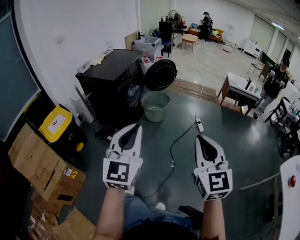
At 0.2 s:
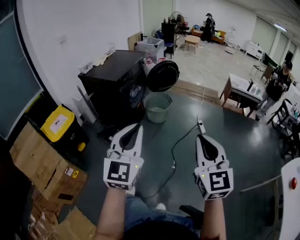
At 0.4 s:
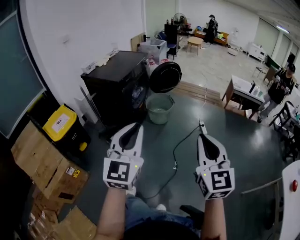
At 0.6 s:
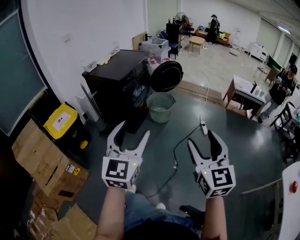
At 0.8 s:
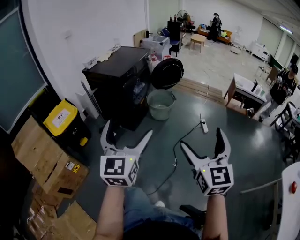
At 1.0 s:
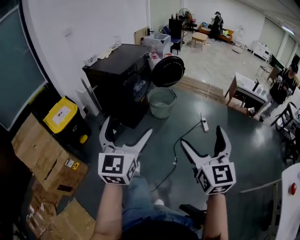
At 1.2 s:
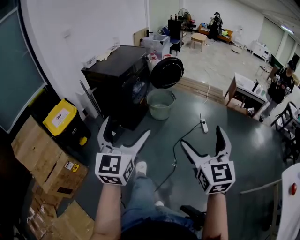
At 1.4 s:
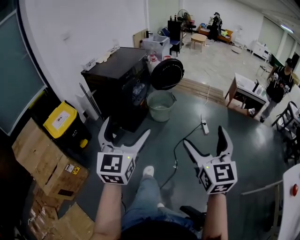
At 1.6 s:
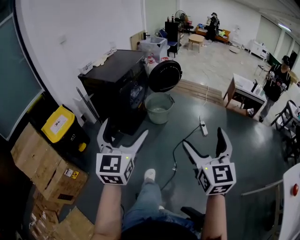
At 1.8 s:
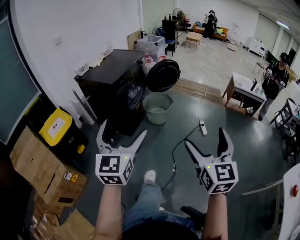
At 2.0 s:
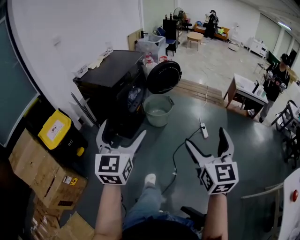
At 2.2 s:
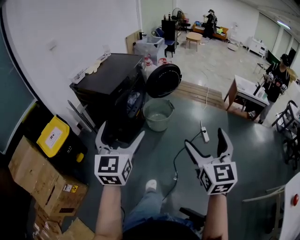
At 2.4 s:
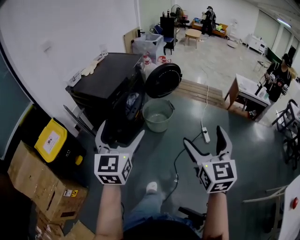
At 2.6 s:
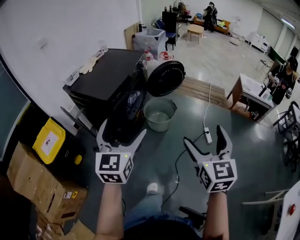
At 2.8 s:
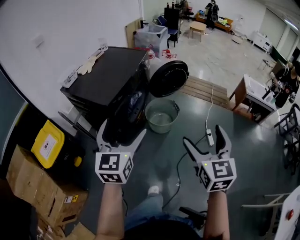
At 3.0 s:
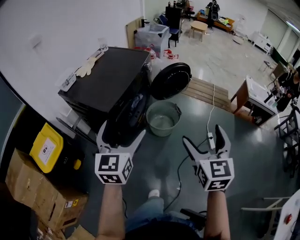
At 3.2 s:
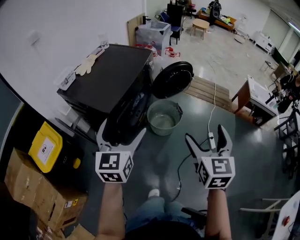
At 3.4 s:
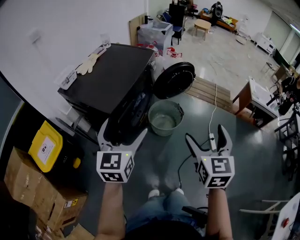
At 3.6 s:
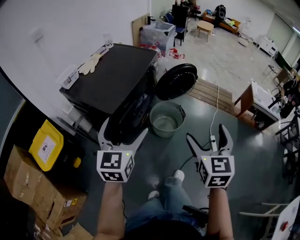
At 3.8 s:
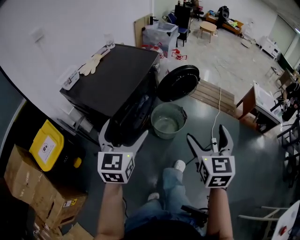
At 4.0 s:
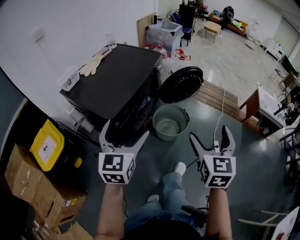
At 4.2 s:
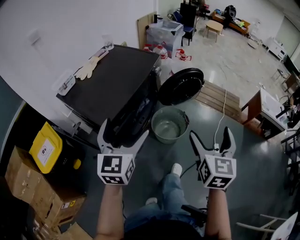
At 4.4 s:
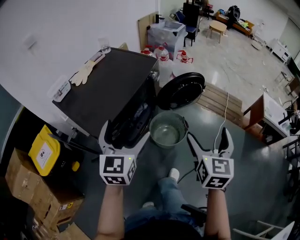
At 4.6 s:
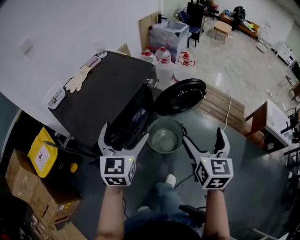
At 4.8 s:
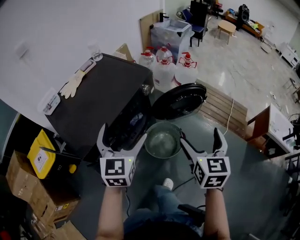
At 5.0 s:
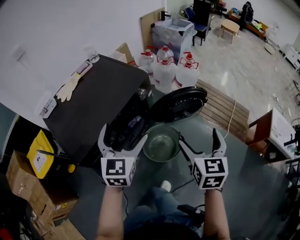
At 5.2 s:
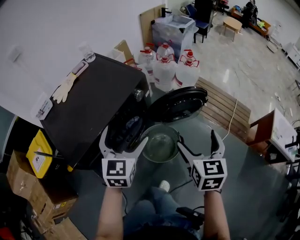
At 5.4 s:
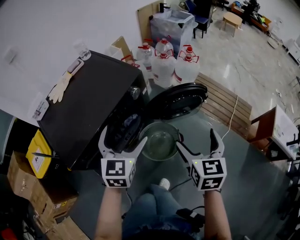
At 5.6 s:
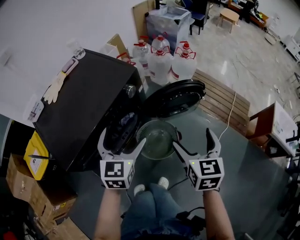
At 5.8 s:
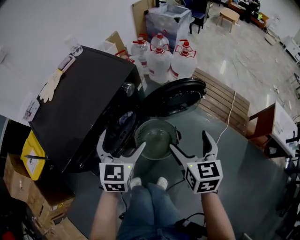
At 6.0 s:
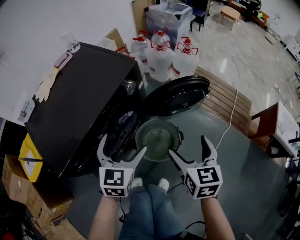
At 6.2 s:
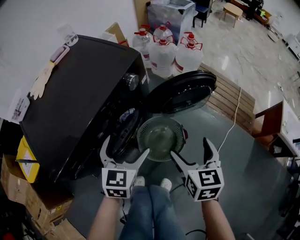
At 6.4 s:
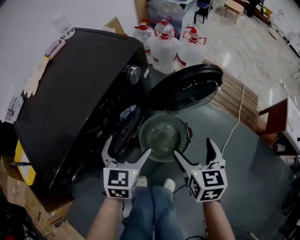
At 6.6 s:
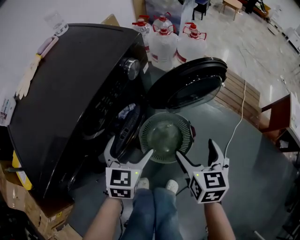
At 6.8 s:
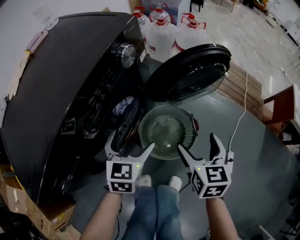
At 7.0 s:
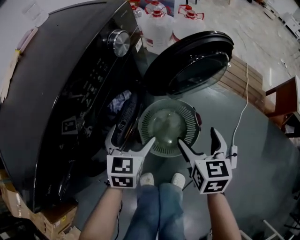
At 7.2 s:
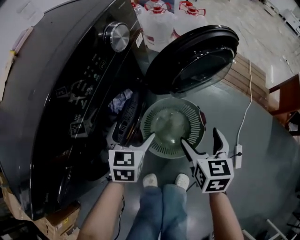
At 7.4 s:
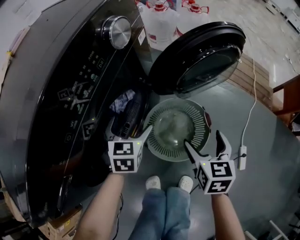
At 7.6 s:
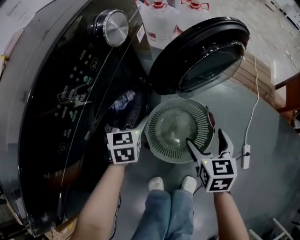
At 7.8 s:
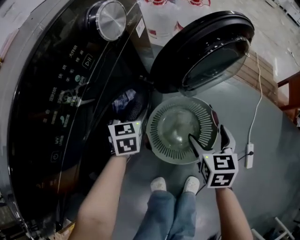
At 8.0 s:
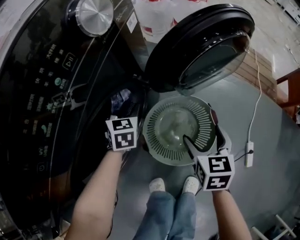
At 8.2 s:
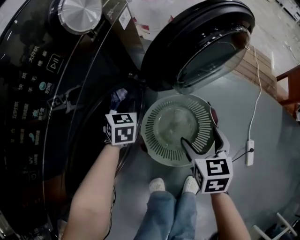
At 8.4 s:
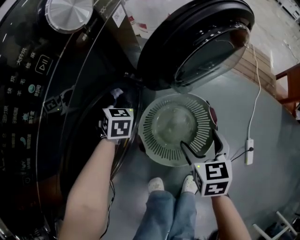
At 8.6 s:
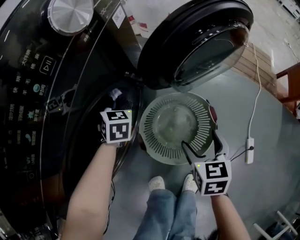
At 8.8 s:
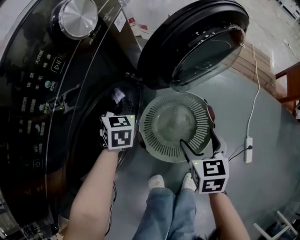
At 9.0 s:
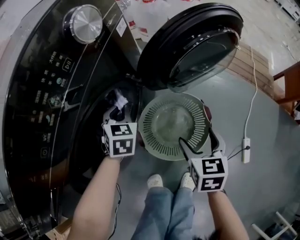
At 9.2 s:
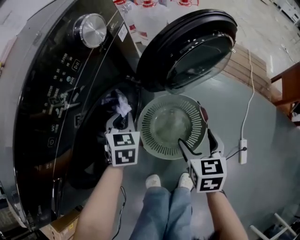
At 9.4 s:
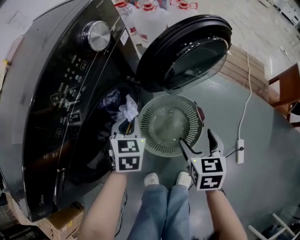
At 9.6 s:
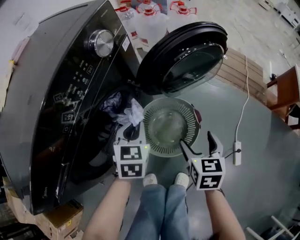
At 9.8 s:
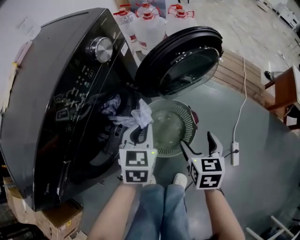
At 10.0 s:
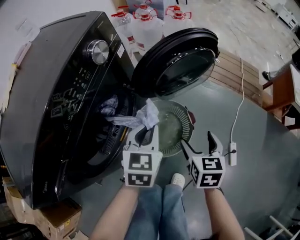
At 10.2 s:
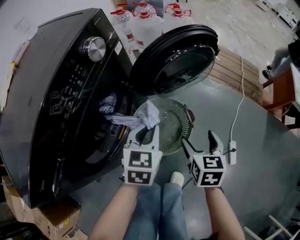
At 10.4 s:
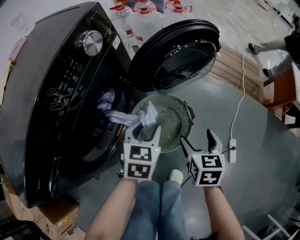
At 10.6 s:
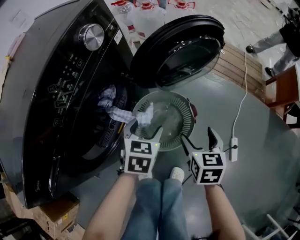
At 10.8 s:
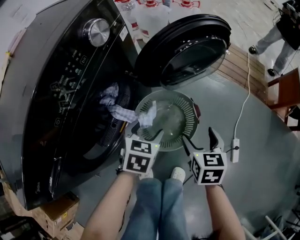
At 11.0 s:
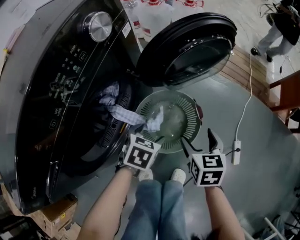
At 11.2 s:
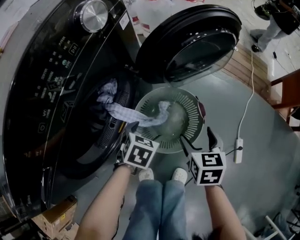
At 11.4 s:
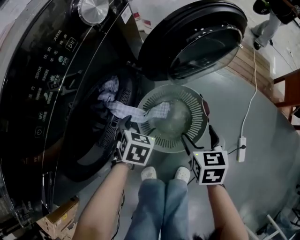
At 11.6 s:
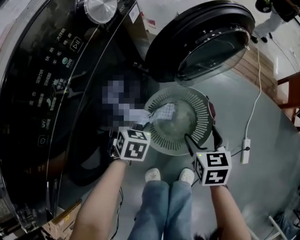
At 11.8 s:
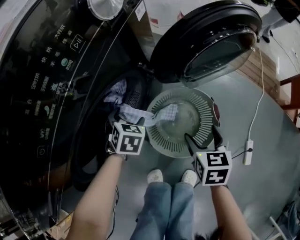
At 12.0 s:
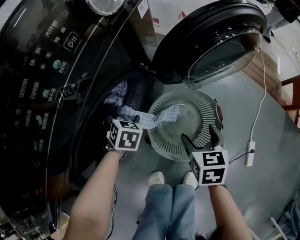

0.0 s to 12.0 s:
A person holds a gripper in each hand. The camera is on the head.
0.0 to 1.6 s: The two grippers go approximately 5 cm forward. The left gripper opens up. The right gripper opens up.
1.6 to 3.0 s: The two grippers travel together, forward, some 40 cm.
3.0 to 4.4 s: The two grippers go about 20 cm forward.
4.4 to 6.0 s: The left gripper is displaced forward, downward and to the right by some 30 cm. The right gripper travels forward and downward by roughly 25 cm, and turns by about 20 degrees.
6.0 to 7.6 s: The left gripper travels downward and forward by about 35 cm, while the right gripper travels downward by some 30 cm.
7.6 to 9.0 s: The left gripper reaches some 10 cm forward, then returns, and closes its fingers.
9.0 to 10.4 s: The right gripper heads to the right and upward, covering some 10 cm, while the left gripper travels to the right, backward and upward by some 20 cm, and rotates about 20 degrees.
10.4 to 12.0 s: The left gripper changes place by about 30 cm, turns by roughly 30 degrees, and opens up. The right gripper ends up about 15 cm from where it was.

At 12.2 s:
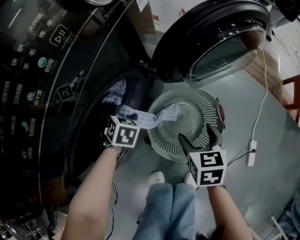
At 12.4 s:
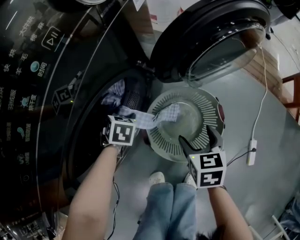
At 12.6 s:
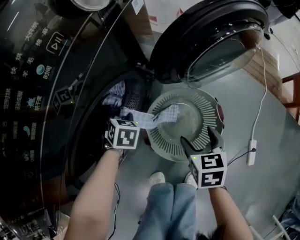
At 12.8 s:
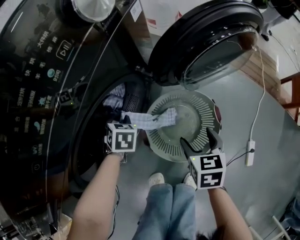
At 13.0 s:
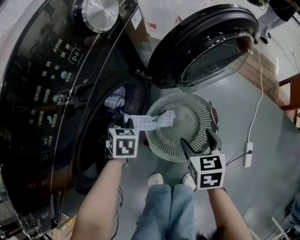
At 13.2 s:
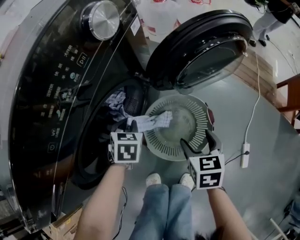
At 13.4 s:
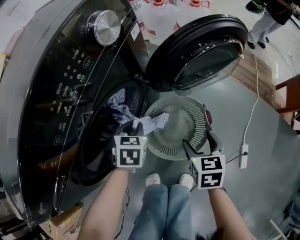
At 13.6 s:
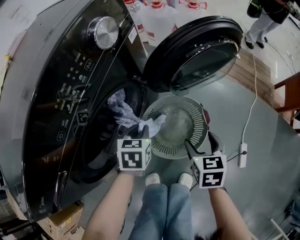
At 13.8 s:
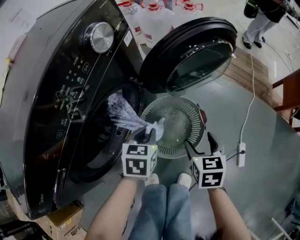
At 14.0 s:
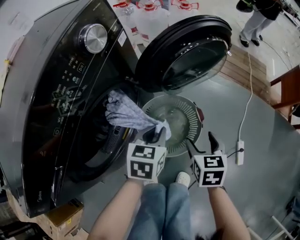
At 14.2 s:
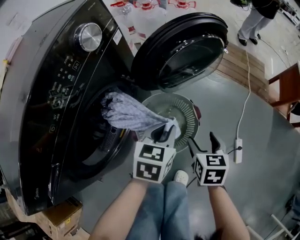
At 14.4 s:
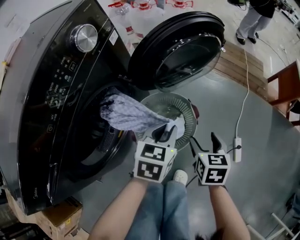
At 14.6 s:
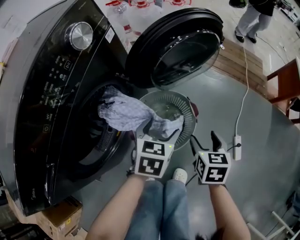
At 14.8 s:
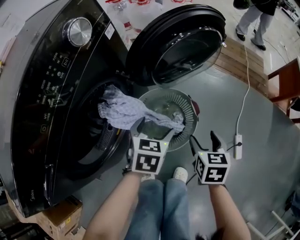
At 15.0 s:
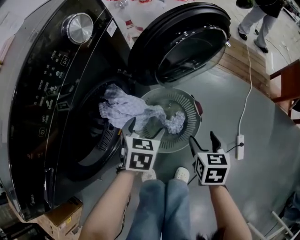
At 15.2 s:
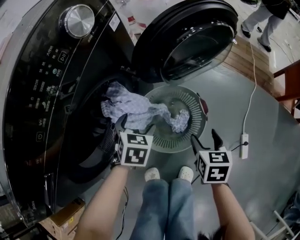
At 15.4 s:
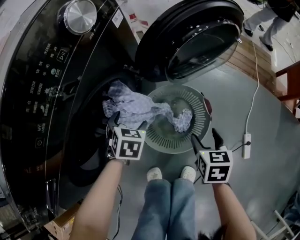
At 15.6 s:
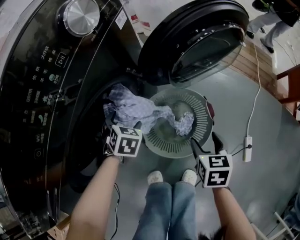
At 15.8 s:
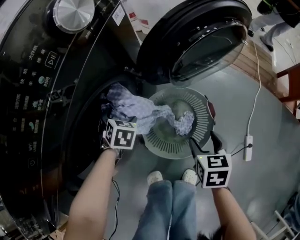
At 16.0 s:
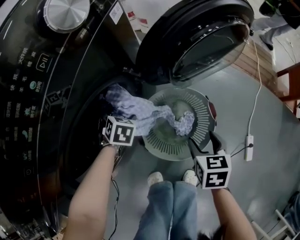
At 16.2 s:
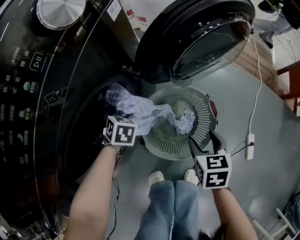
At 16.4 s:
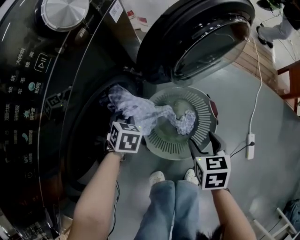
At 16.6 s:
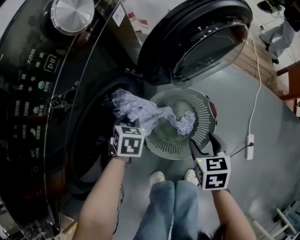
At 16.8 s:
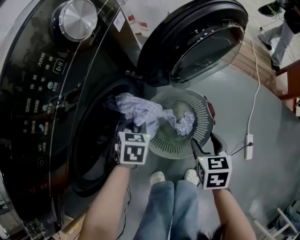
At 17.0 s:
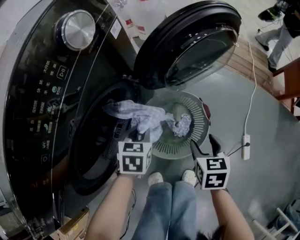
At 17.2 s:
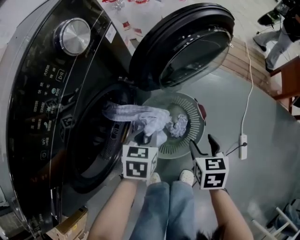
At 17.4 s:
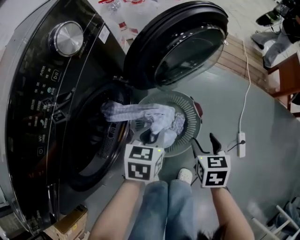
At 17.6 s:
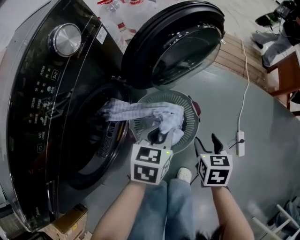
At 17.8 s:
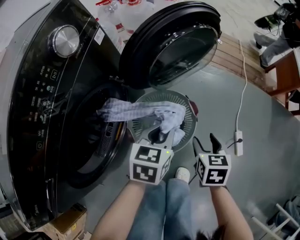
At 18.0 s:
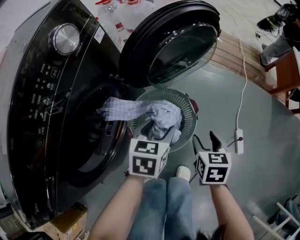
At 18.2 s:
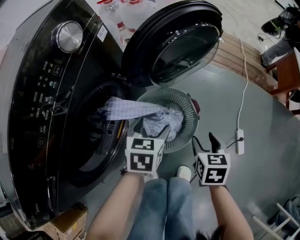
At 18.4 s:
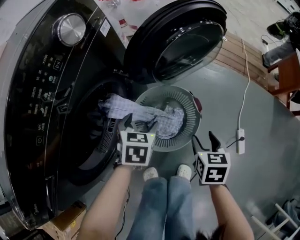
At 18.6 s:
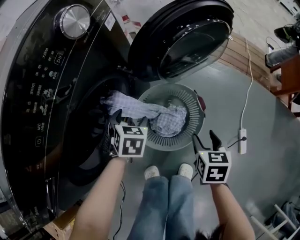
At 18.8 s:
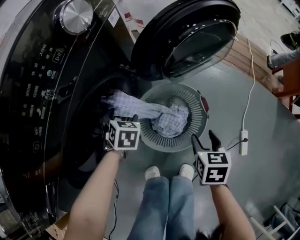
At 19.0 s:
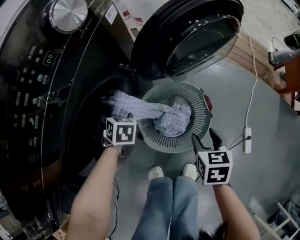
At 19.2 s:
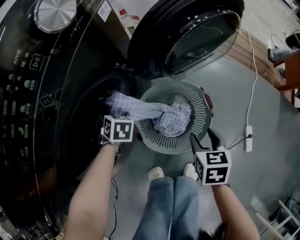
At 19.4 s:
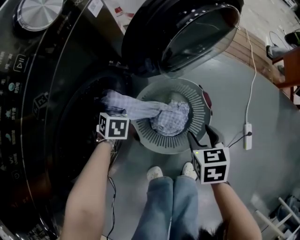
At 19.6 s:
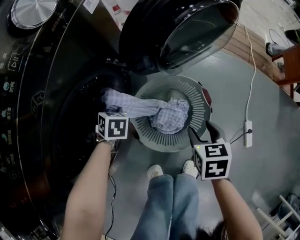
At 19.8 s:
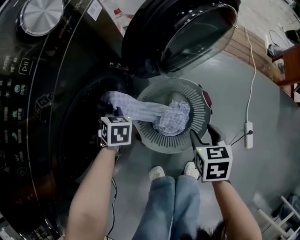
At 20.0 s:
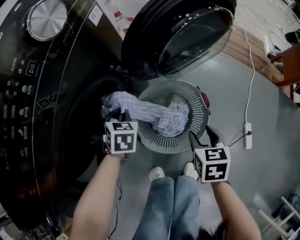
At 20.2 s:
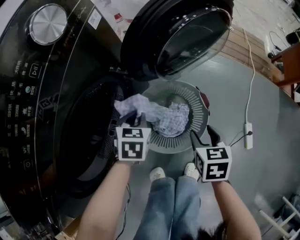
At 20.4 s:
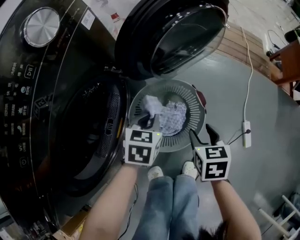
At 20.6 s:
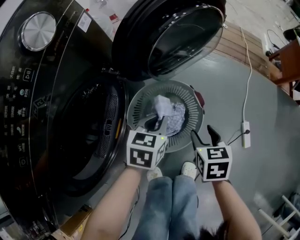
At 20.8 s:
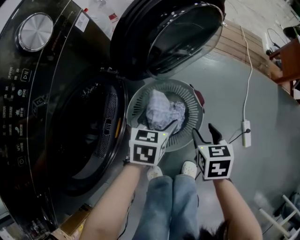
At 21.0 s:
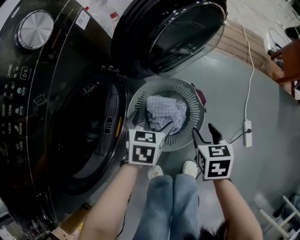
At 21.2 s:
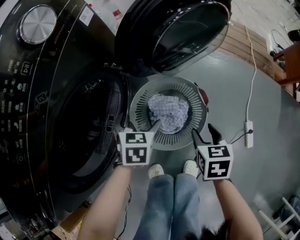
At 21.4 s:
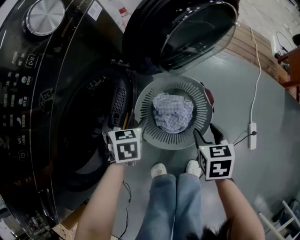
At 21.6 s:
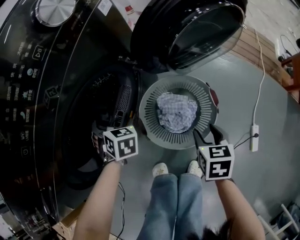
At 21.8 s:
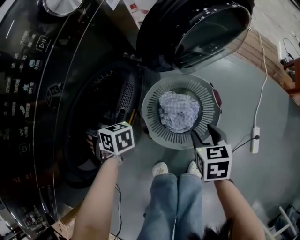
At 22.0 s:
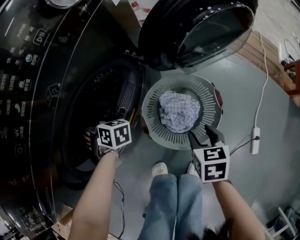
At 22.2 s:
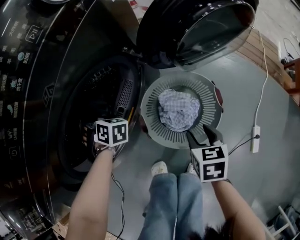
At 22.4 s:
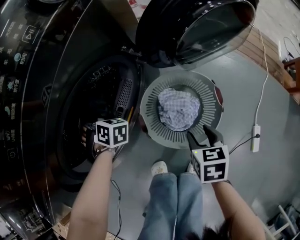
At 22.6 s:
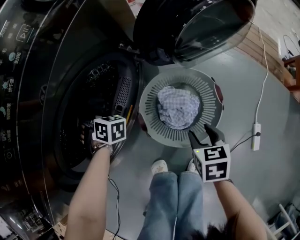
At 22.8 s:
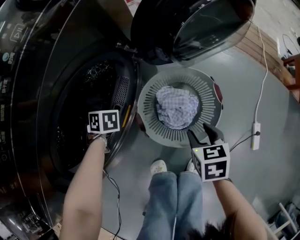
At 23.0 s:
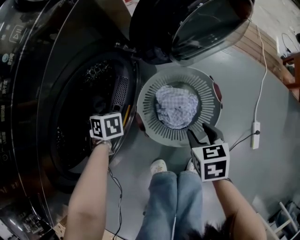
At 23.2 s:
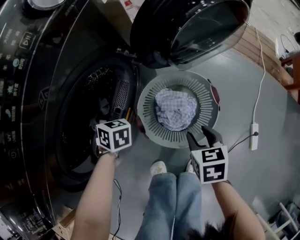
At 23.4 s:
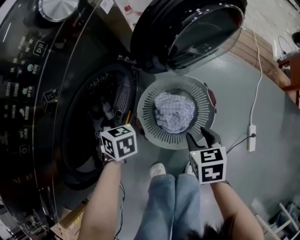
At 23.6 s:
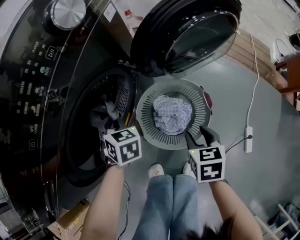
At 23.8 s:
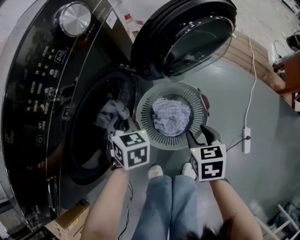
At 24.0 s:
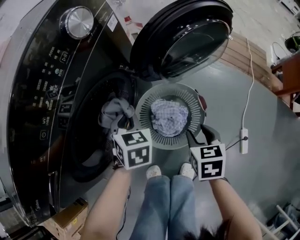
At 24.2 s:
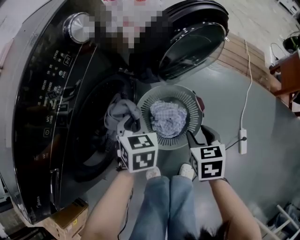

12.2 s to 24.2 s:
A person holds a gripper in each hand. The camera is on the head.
12.2 to 13.8 s: The left gripper moves to the right, upward and backward, approximately 25 cm, rotates some 30 degrees, and closes. The right gripper heads upward, to the right and backward, covering roughly 10 cm.
13.8 to 15.2 s: The left gripper shifts about 5 cm downward, reaches some 10 cm to the right, then returns, and opens its fingers. Meanwhile the right gripper ends up approximately 5 cm from where it was.
15.2 to 16.6 s: The left gripper travels to the left, downward and forward by about 10 cm, and closes its fingers. Meanwhile the right gripper shifts by some 5 cm.
16.6 to 18.2 s: The right gripper goes some 10 cm to the right. The left gripper goes roughly 20 cm to the right and upward, turns by about 20 degrees, and opens its fingers.
18.2 to 19.8 s: The right gripper changes place by approximately 10 cm. Meanwhile the left gripper moves some 25 cm, rotates about 30 degrees, and closes its fingers.
19.8 to 21.2 s: The left gripper opens its fingers.
21.2 to 22.6 s: The right gripper moves some 5 cm; the left gripper moves about 25 cm, and changes its angle by roughly 50 degrees.
22.6 to 24.2 s: The right gripper travels upward by roughly 10 cm; the left gripper changes place by roughly 25 cm, rotates some 40 degrees, and closes.
